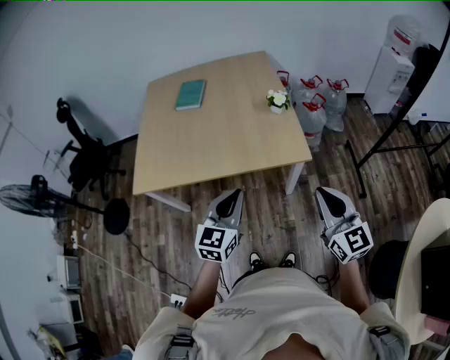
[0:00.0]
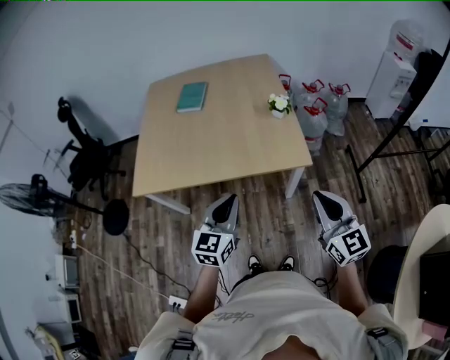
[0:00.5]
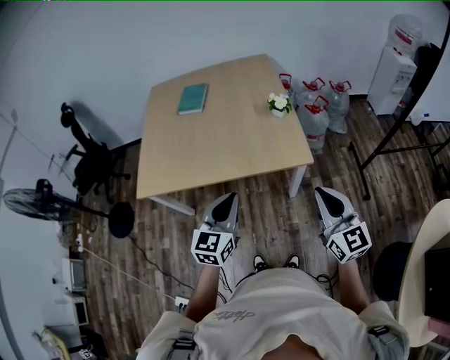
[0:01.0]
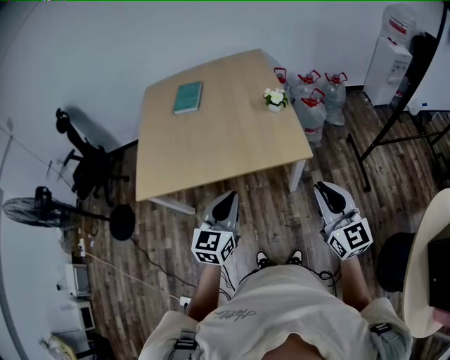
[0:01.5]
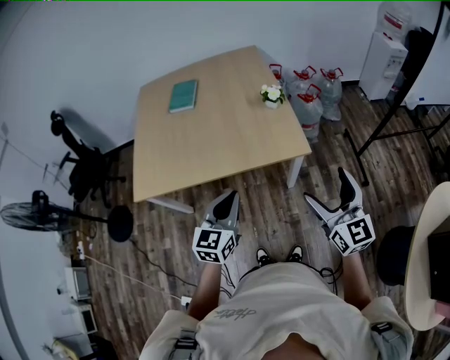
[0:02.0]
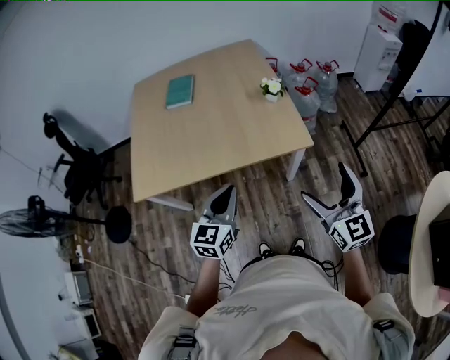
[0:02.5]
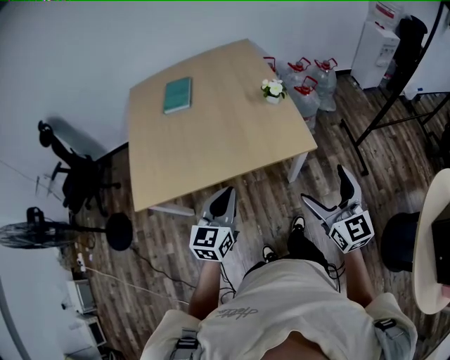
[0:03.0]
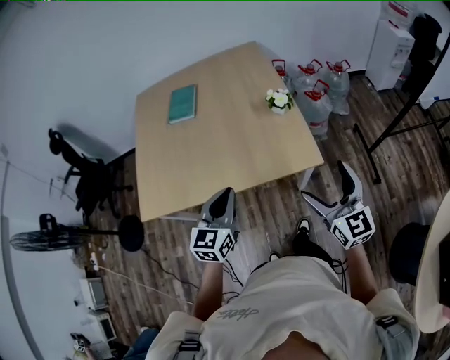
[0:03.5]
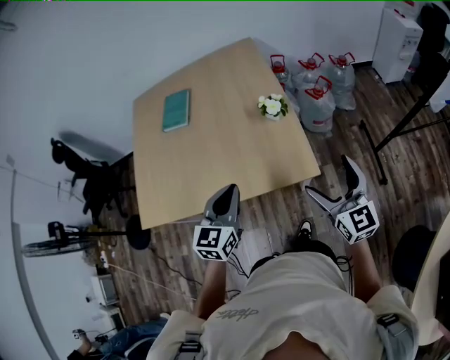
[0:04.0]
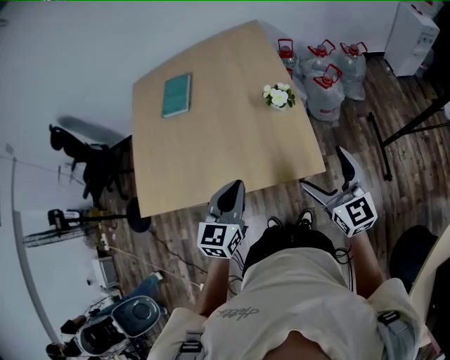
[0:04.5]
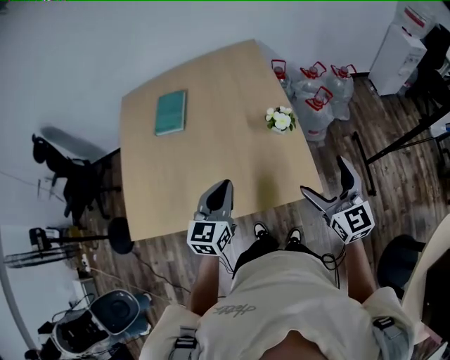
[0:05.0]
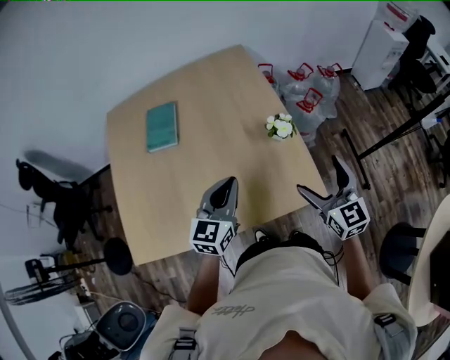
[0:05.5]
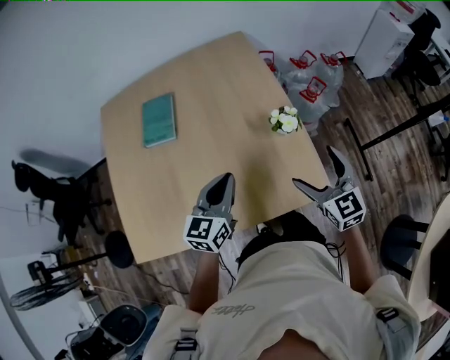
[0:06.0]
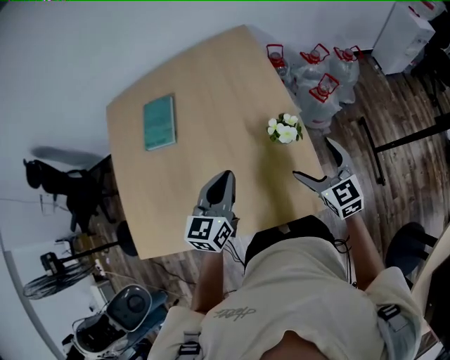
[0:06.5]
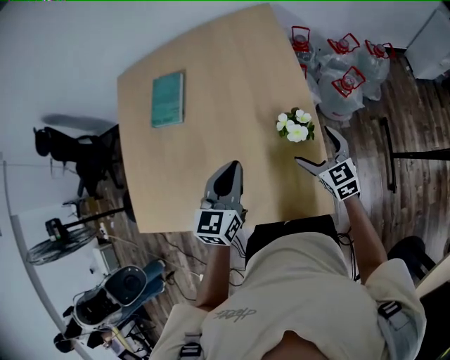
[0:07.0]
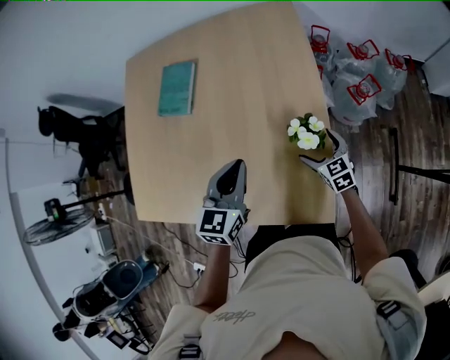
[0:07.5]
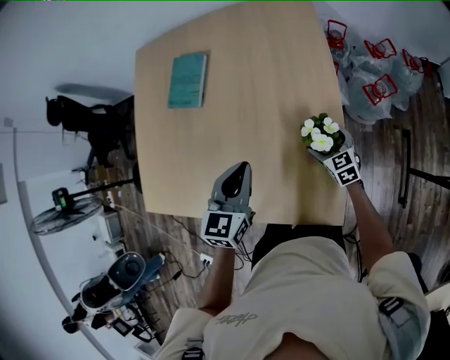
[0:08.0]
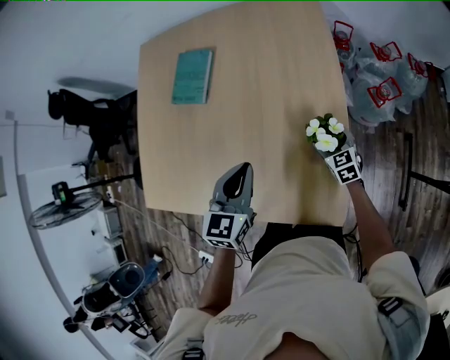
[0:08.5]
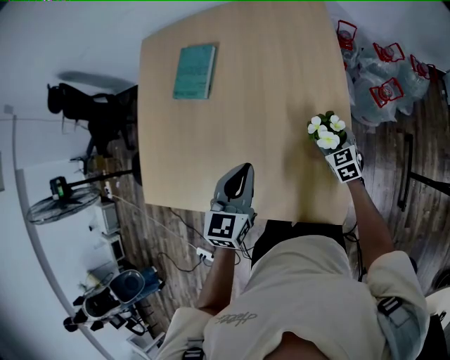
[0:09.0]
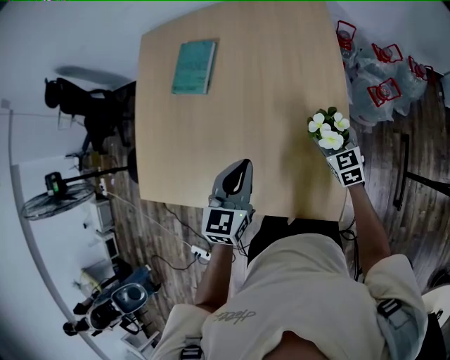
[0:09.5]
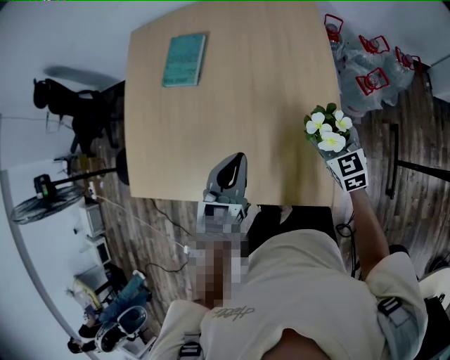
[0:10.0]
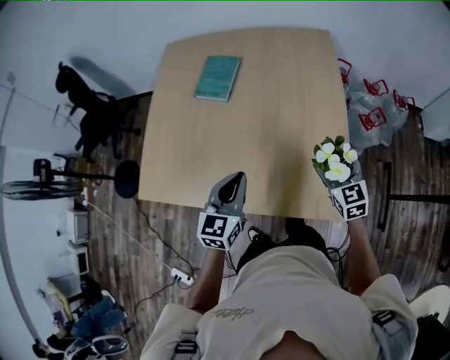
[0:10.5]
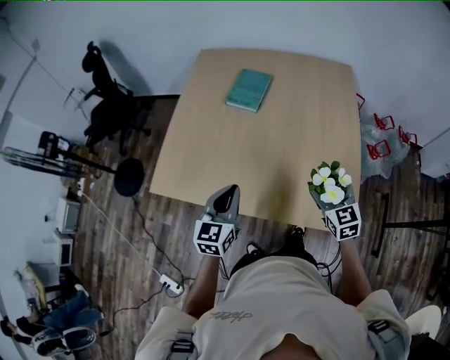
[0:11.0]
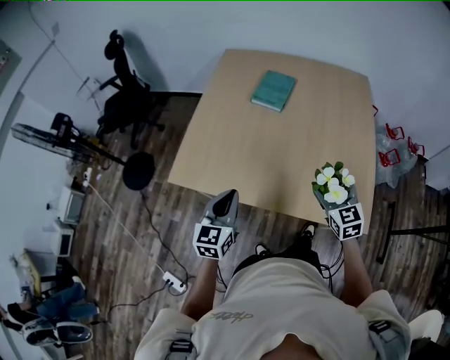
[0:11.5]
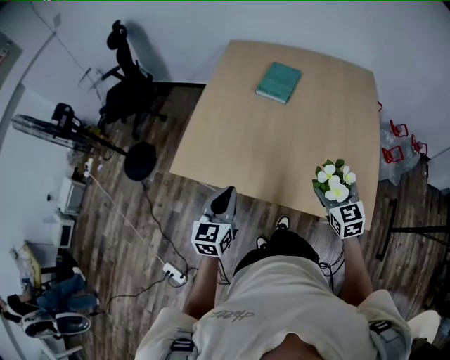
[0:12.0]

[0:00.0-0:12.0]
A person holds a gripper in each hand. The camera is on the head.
0:00.0 to 0:02.0: The right gripper opens.
0:02.0 to 0:04.0: The grippers both shift forward by approximately 20 cm.
0:04.0 to 0:06.0: Both grippers travel together forward and to the left, some 20 cm.
0:06.0 to 0:08.0: The left gripper goes approximately 10 cm forward and to the right, and turns by approximately 30 degrees, while the right gripper heads downward and forward, covering about 30 cm, and swivels approximately 30 degrees.
0:08.0 to 0:10.0: The right gripper moves upward, some 10 cm; the left gripper shifts by roughly 5 cm.
0:10.0 to 0:12.0: The grippers both shift to the left and backward by approximately 30 cm.

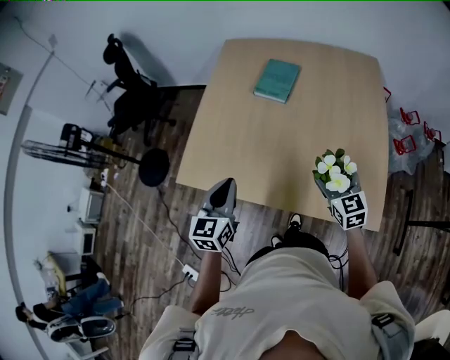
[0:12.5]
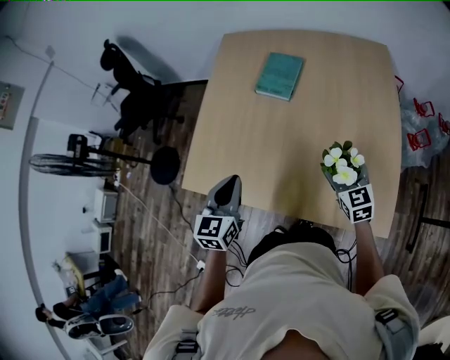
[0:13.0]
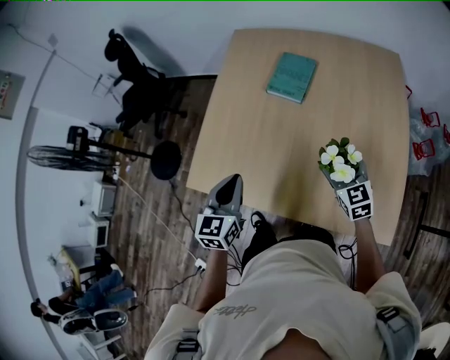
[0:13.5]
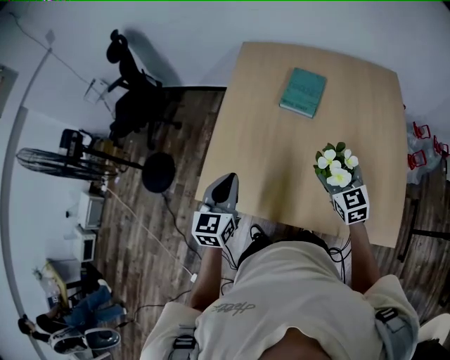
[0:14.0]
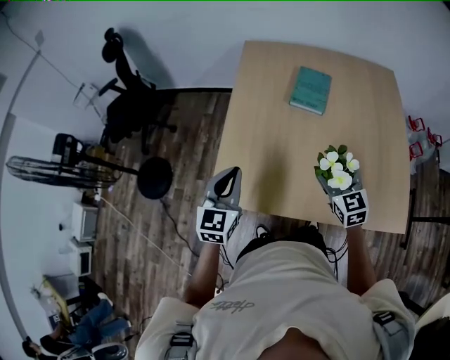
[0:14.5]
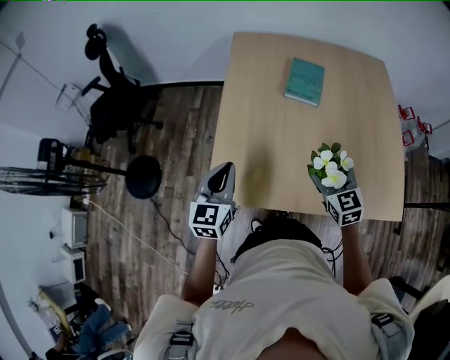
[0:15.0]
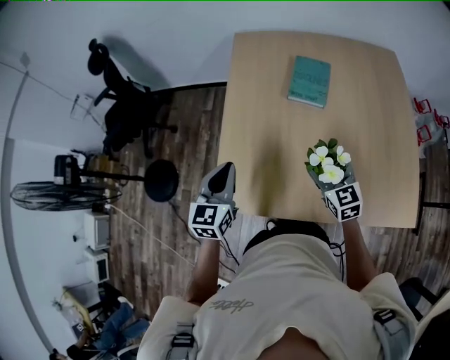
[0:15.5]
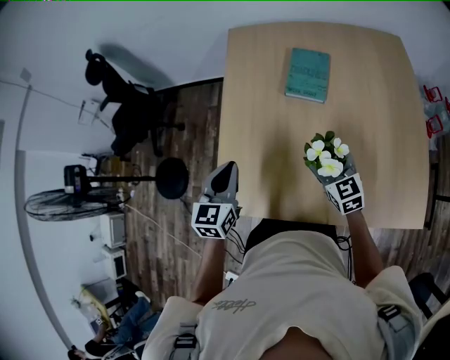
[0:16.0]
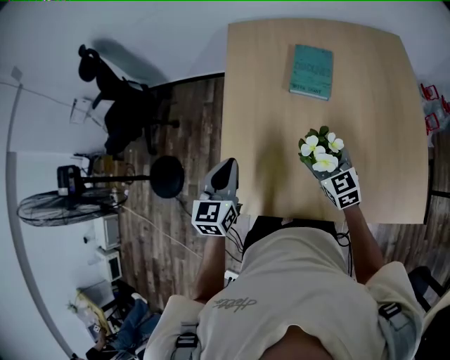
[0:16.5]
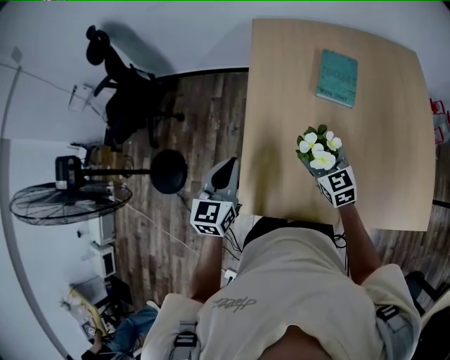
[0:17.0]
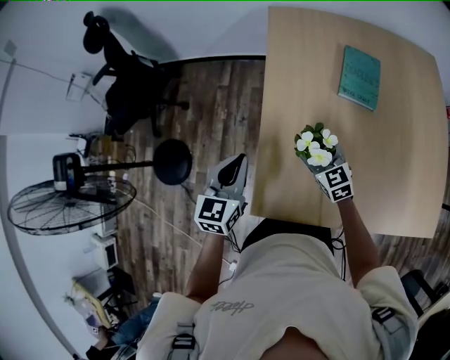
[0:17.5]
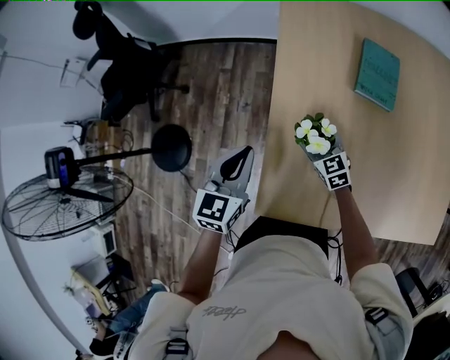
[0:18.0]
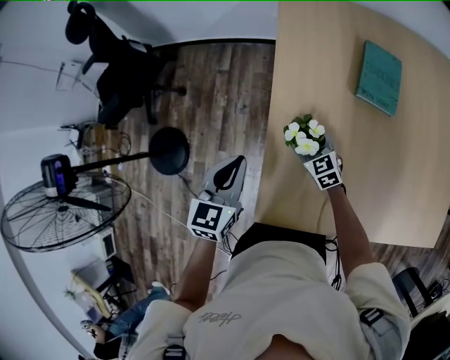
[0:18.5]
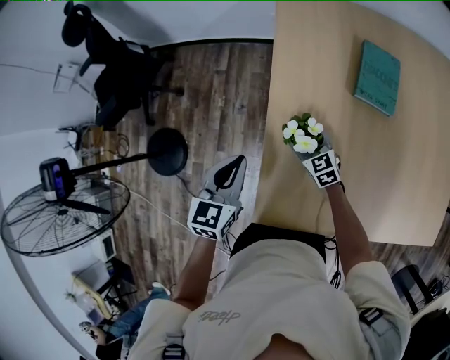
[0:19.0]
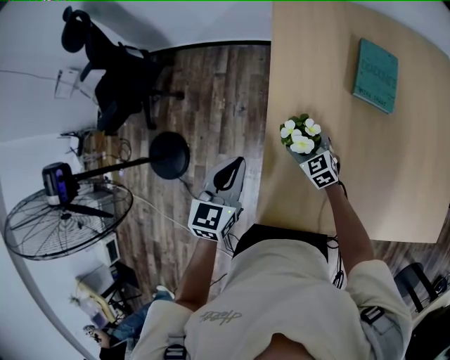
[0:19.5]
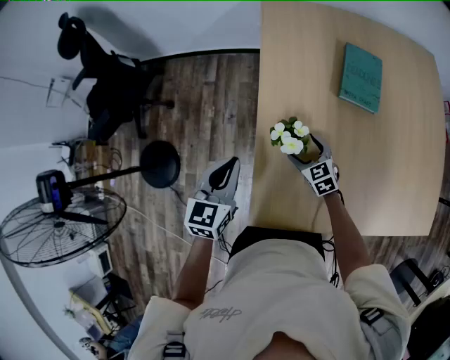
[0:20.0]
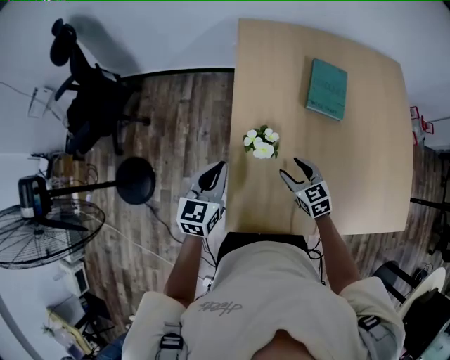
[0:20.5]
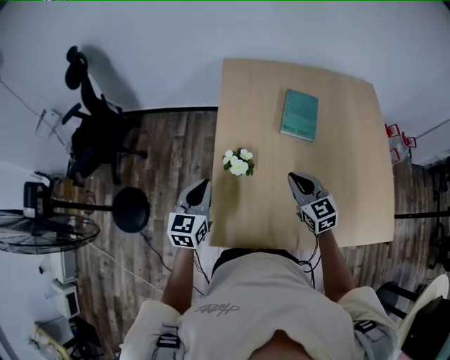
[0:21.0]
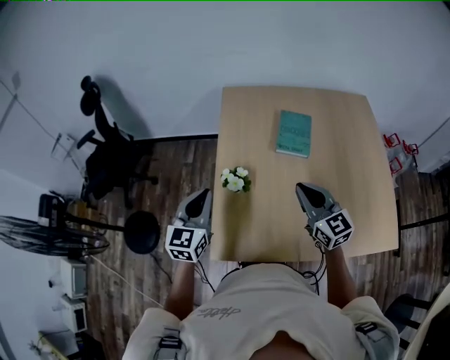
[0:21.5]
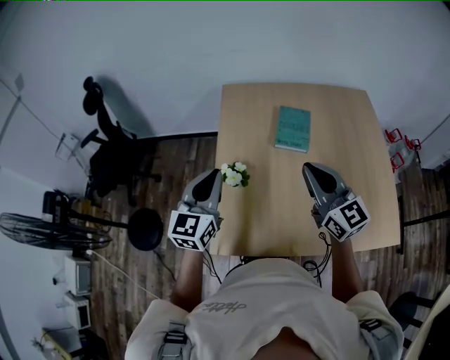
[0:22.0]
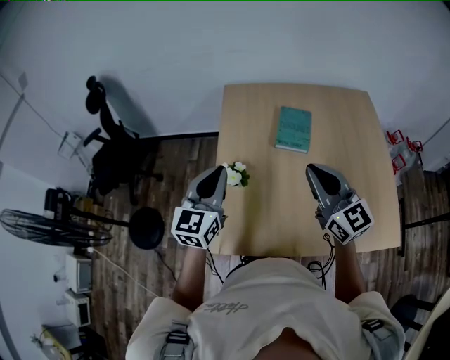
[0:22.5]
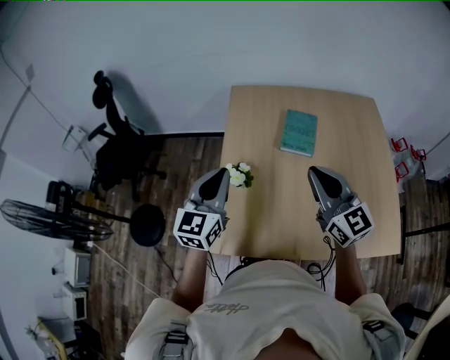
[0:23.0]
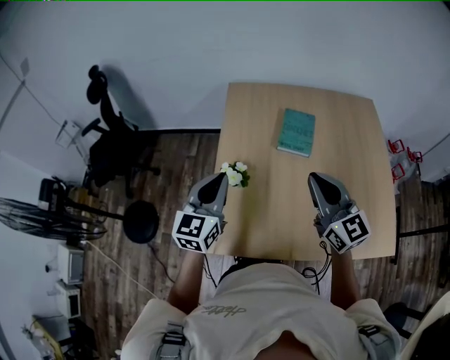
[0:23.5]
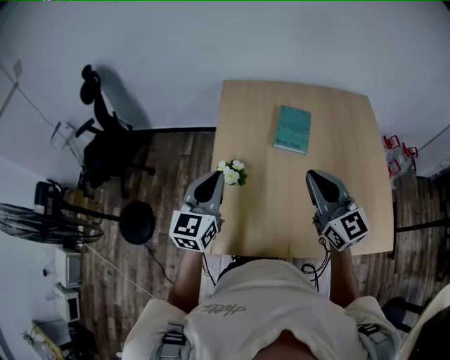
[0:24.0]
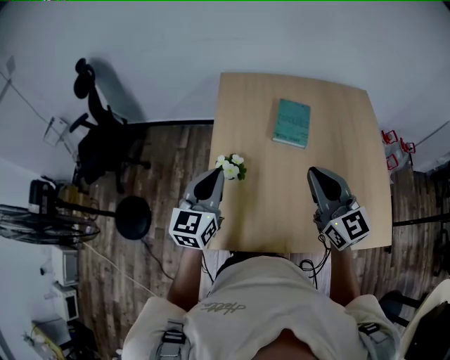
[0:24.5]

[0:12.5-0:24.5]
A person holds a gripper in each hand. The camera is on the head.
0:12.5 to 0:14.5: Both grippers travel together to the left and forward, some 20 cm.
0:14.5 to 0:16.5: The right gripper goes some 10 cm forward and downward. The left gripper moves forward, approximately 10 cm.
0:16.5 to 0:18.5: The right gripper shifts some 30 cm to the left, downward and forward, while the left gripper is displaced to the left and forward by approximately 15 cm.
0:18.5 to 0:20.5: The right gripper heads backward, to the right and upward, covering about 15 cm.
0:20.5 to 0:22.5: The left gripper goes roughly 25 cm upward and to the right, and rotates approximately 20 degrees, while the right gripper is displaced upward by some 35 cm, tilts its fingers some 40 degrees upward, and closes up.
0:22.5 to 0:24.5: The left gripper moves approximately 5 cm.

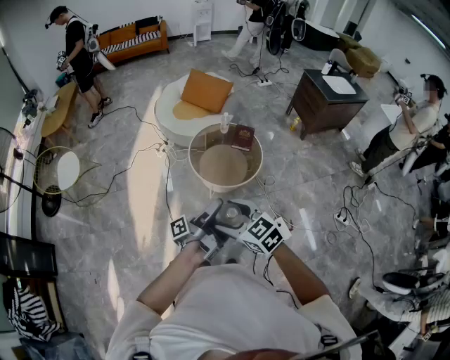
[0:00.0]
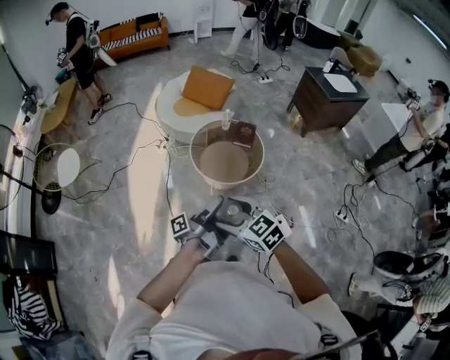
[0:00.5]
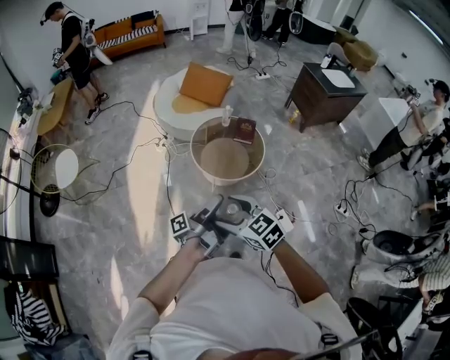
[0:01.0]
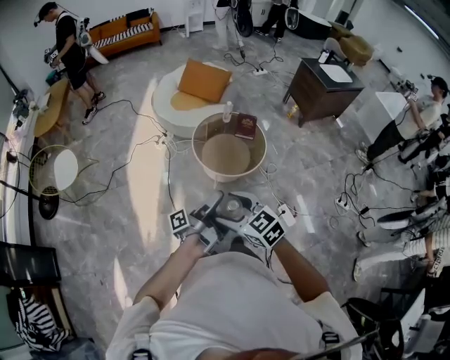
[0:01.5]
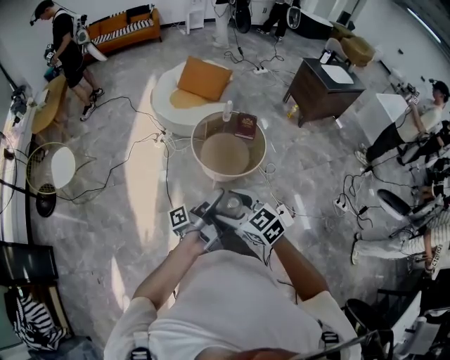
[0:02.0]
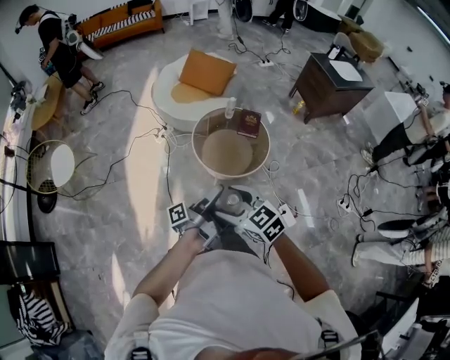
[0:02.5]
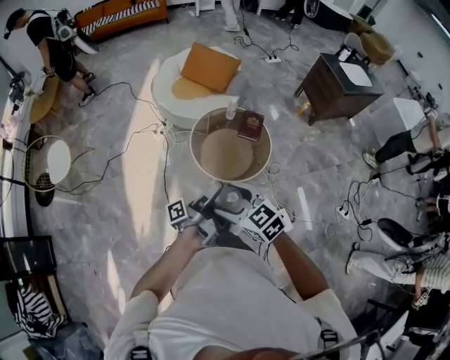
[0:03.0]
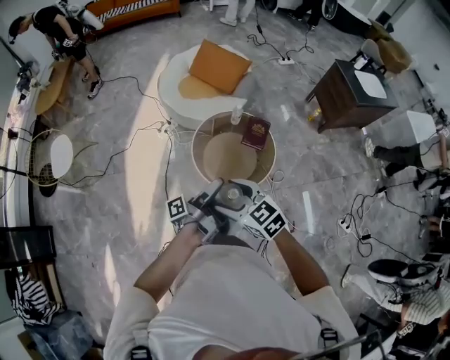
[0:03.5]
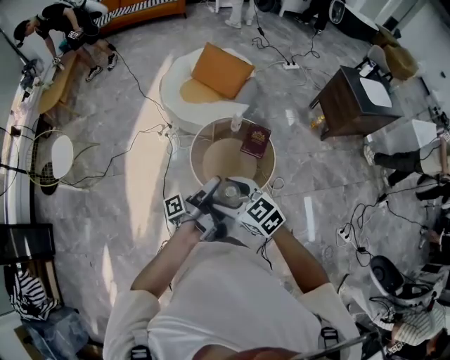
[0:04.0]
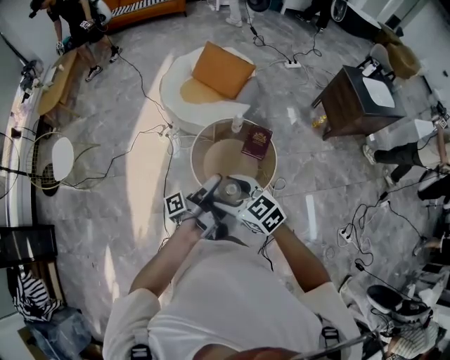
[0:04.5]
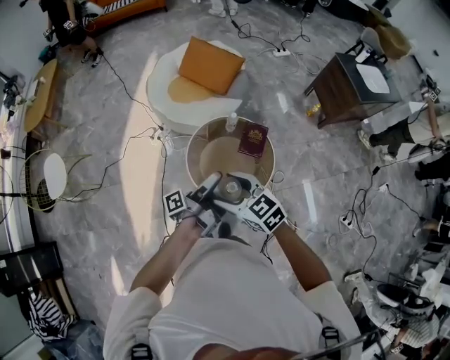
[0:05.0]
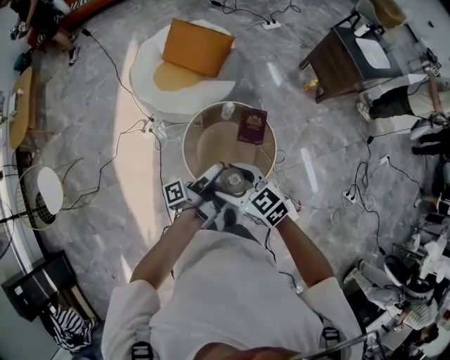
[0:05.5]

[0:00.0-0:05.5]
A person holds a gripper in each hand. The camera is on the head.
0:00.0 to 0:02.0: The right gripper changes place by roughly 10 cm.
0:02.0 to 0:03.5: The right gripper ends up some 30 cm from where it was.
0:03.5 to 0:05.5: The right gripper ends up some 30 cm from where it was.
